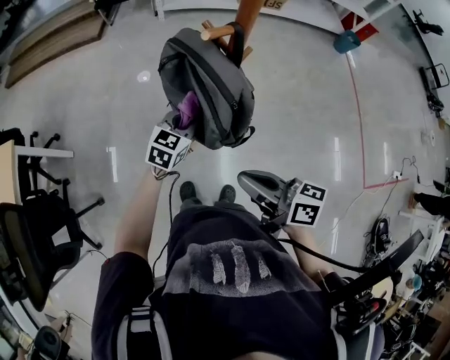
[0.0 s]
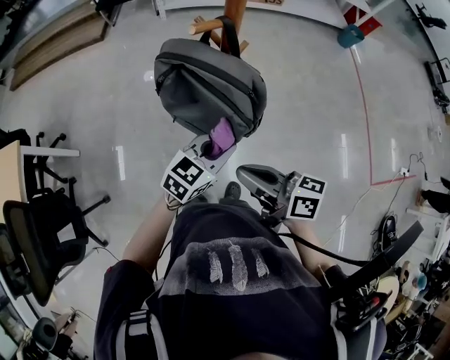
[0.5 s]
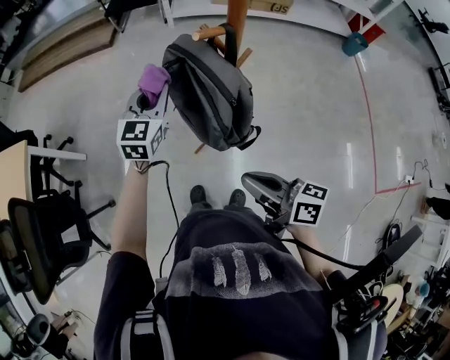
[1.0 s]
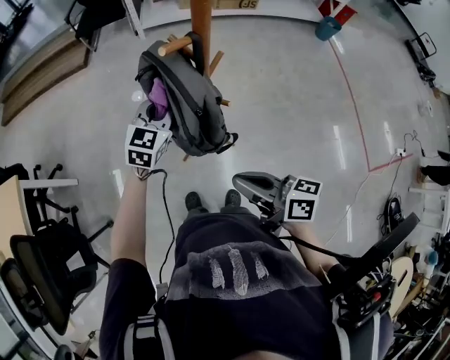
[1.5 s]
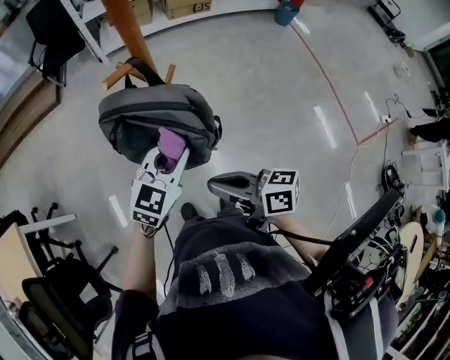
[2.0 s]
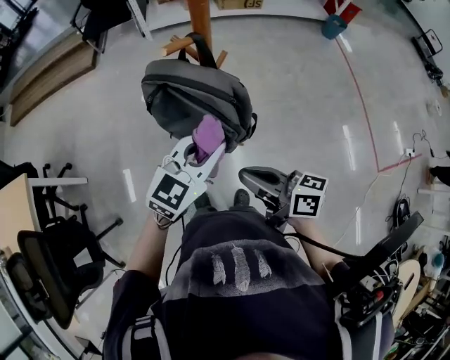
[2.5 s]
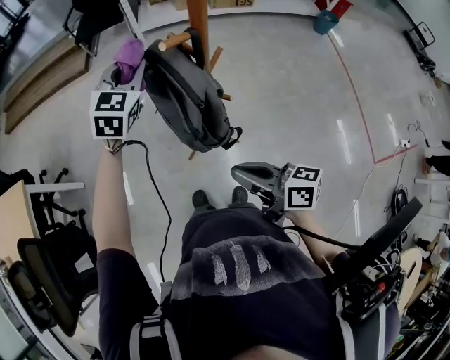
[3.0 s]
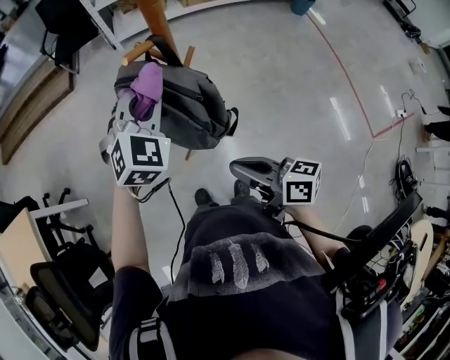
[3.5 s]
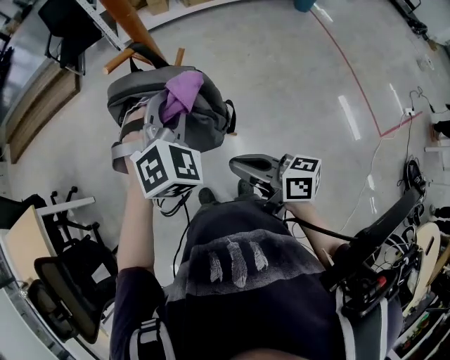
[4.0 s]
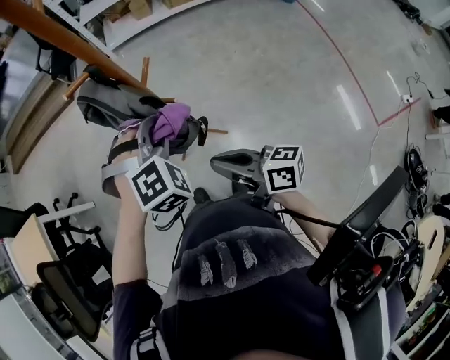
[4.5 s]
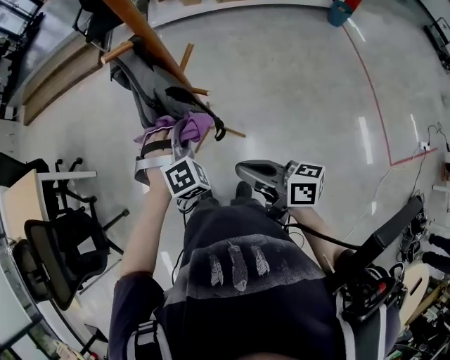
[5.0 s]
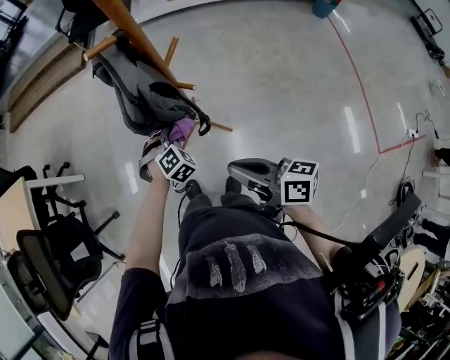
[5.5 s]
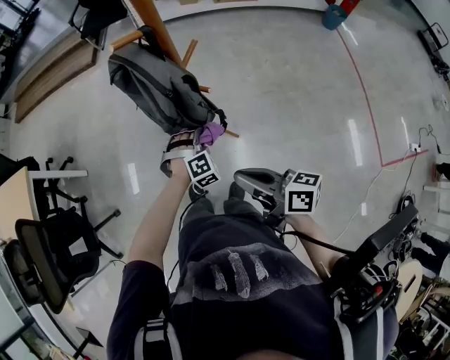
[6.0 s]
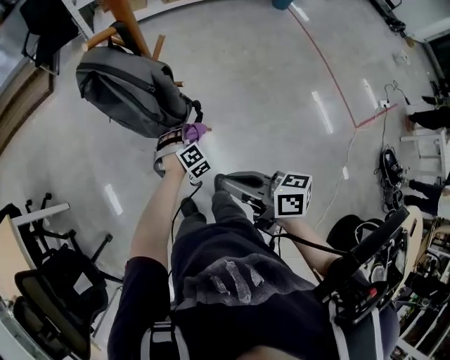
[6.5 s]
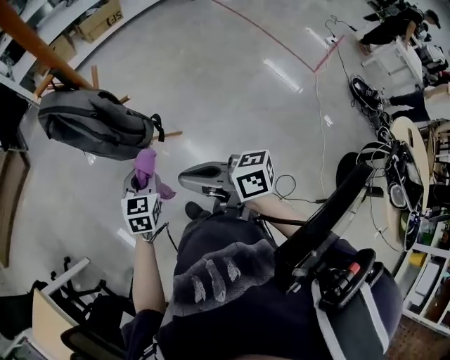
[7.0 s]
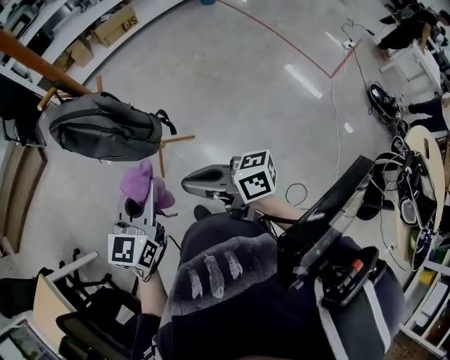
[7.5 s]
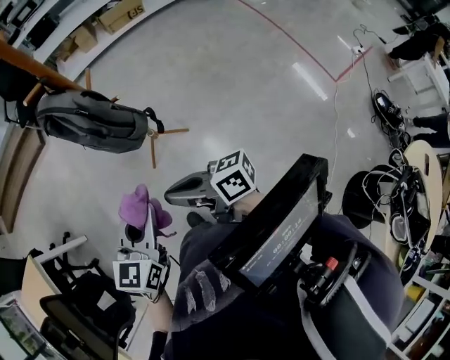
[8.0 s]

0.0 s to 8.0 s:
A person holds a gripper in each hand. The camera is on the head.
0.0 to 2.0 s: The left gripper moves forward and backward over some 20 cm, changing direction 2 times, and changes its angle by some 20 degrees.
2.0 to 4.0 s: The left gripper shifts approximately 10 cm upward, travels forward and back again, about 20 cm each way, and swivels roughly 50 degrees.
4.0 to 6.0 s: The left gripper goes some 30 cm downward, and swivels about 20 degrees; the right gripper moves roughly 5 cm.
6.0 to 8.0 s: The left gripper moves upward, approximately 25 cm, and points its fingers roughly 30 degrees further upward. Meanwhile the right gripper ends up some 15 cm from where it was.

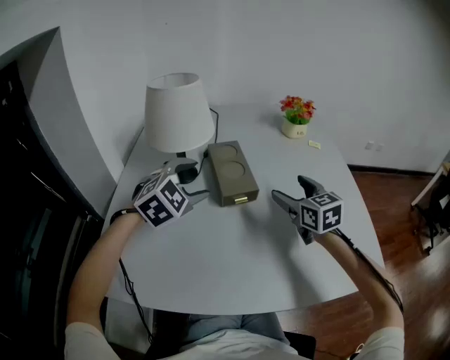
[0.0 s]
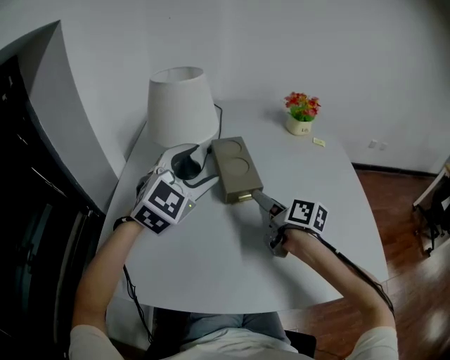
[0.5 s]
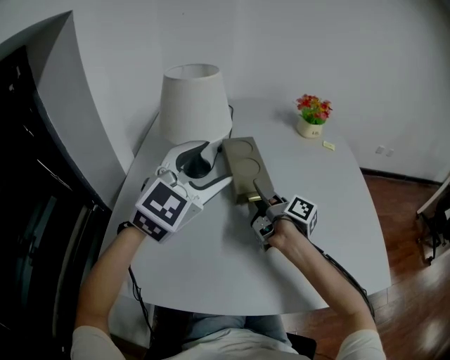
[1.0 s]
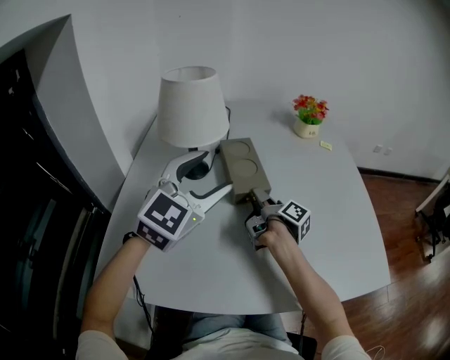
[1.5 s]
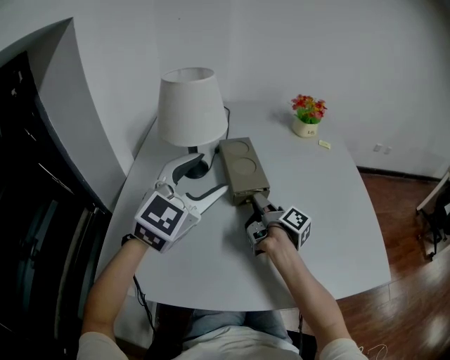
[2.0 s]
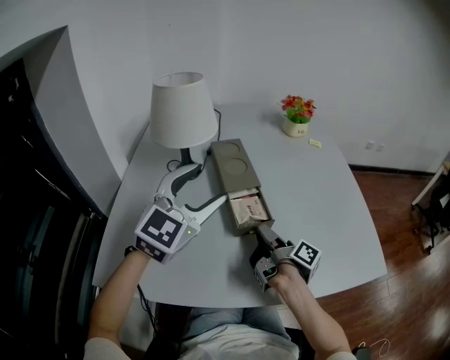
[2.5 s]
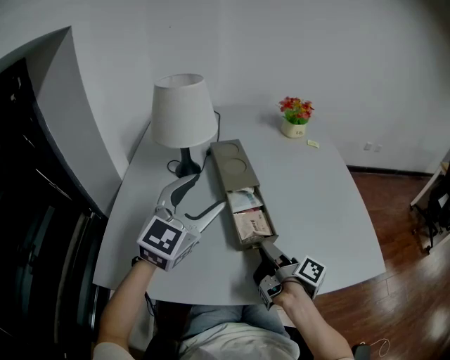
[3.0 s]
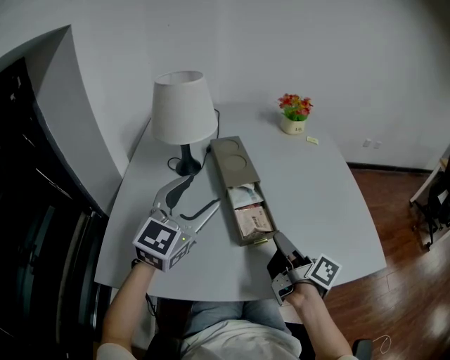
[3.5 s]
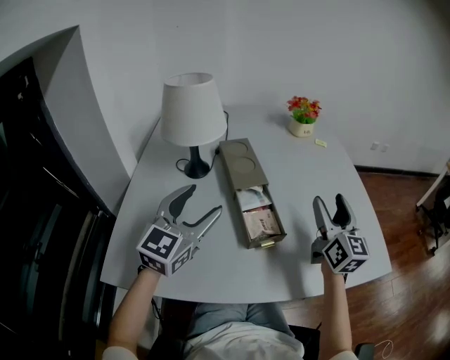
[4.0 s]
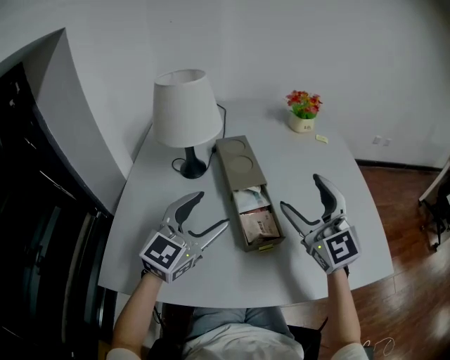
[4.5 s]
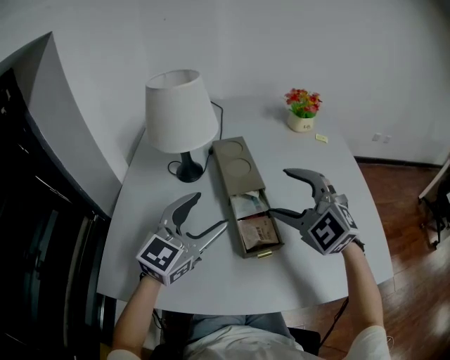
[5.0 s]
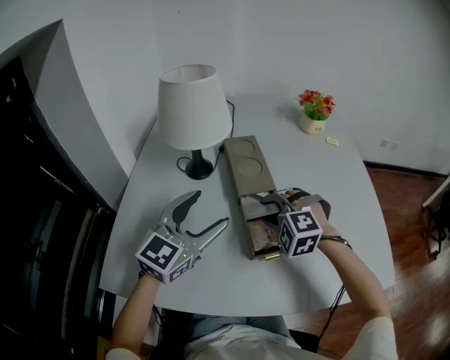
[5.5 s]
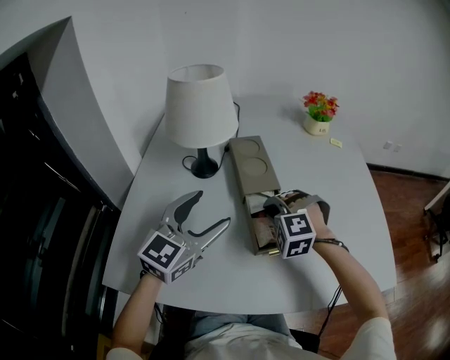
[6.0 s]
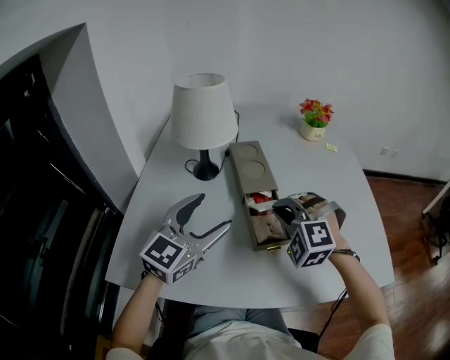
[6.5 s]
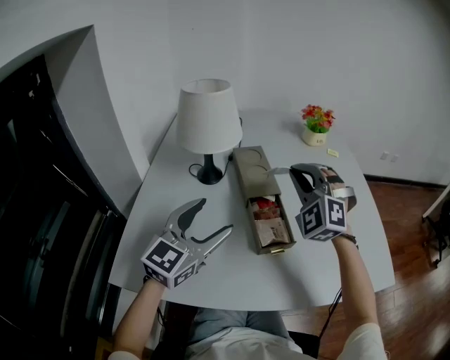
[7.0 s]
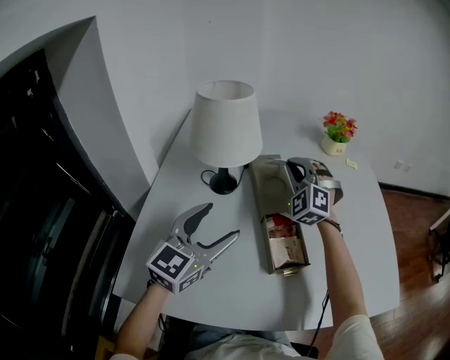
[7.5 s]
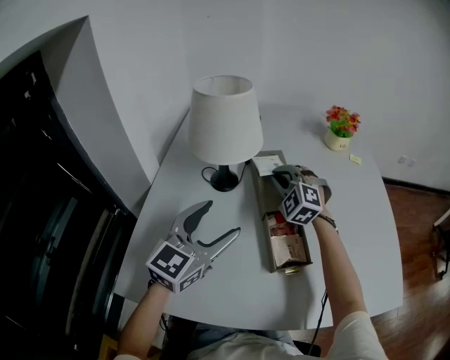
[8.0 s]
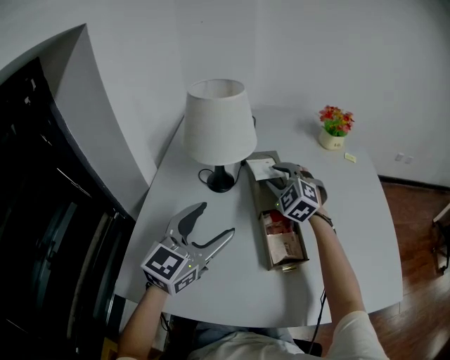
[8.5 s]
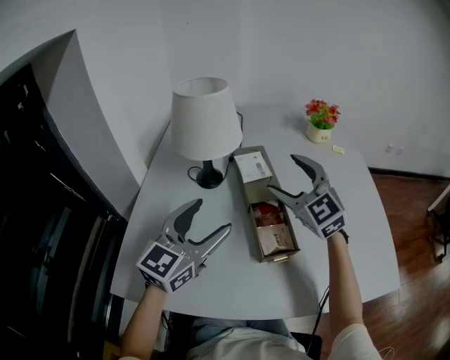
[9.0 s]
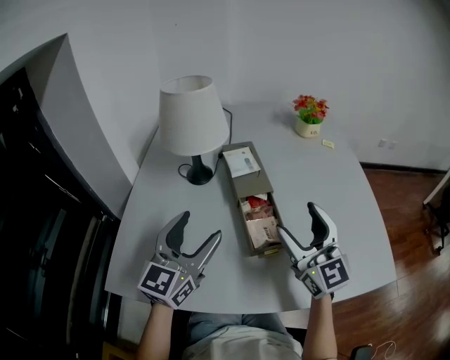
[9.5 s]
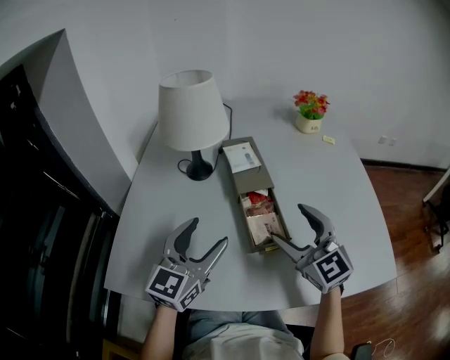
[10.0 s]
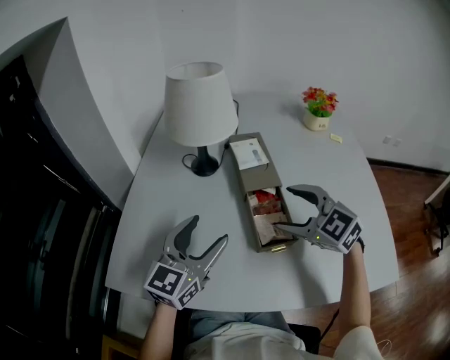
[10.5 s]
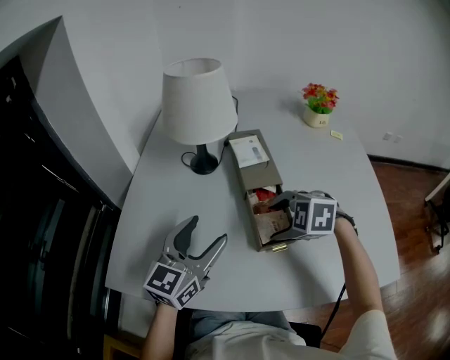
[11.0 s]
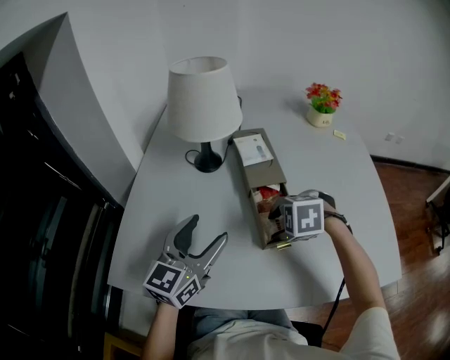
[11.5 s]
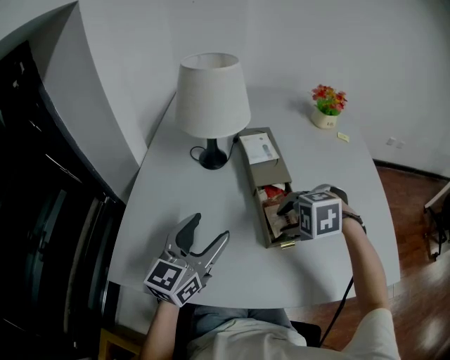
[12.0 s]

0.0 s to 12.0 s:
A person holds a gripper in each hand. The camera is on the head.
0.0 to 2.0 s: The right gripper heads to the left and downward, covering approximately 15 cm, rolls clockwise, seen from behind, by some 90 degrees, and closes up, while the left gripper travels upward and backward by some 10 cm, and rotates roughly 30 degrees.
2.0 to 4.0 s: The left gripper heads downward and backward, covering approximately 5 cm. Meanwhile the right gripper is displaced to the right, upward and backward by approximately 25 cm, twists about 80 degrees counterclockwise, seen from behind, and opens its fingers.
4.0 to 6.0 s: The right gripper shifts some 25 cm to the left and downward, rolls counterclockwise, seen from behind, by roughly 90 degrees, and closes its fingers.
6.0 to 8.0 s: The right gripper is displaced forward, to the left and upward by approximately 15 cm, and rotates approximately 30 degrees.
8.0 to 10.0 s: The left gripper is displaced backward by about 5 cm. The right gripper moves backward, some 25 cm, rotates around the line of its fingers by some 40 degrees, clockwise from behind, and opens.
10.0 to 12.0 s: The right gripper moves downward, approximately 10 cm, angles its fingers downward, by about 70 degrees, and closes its fingers.

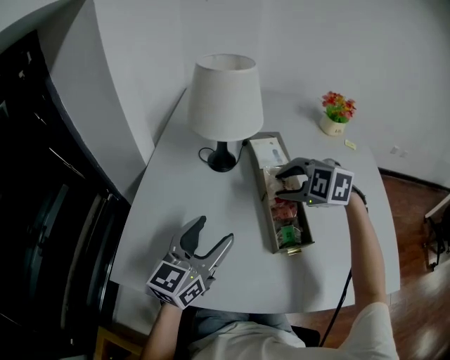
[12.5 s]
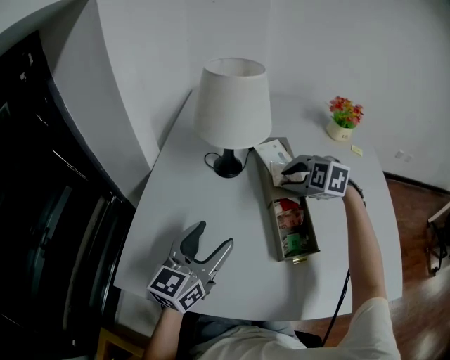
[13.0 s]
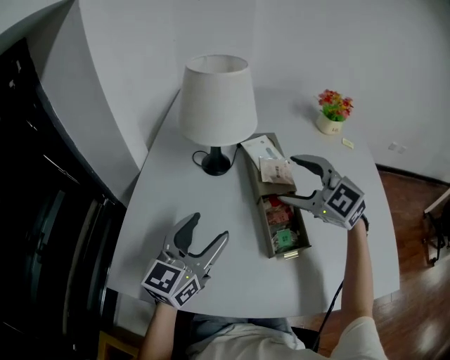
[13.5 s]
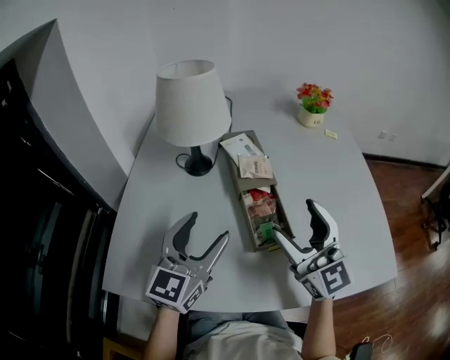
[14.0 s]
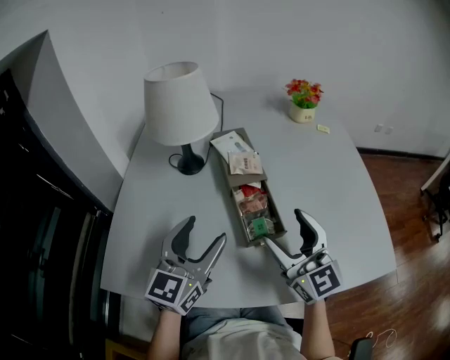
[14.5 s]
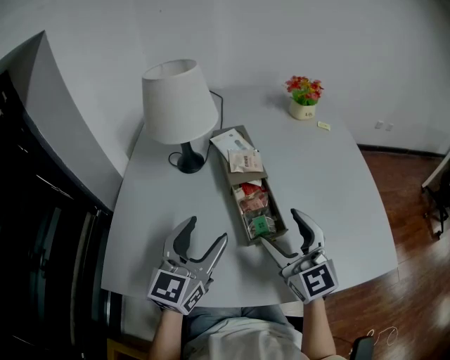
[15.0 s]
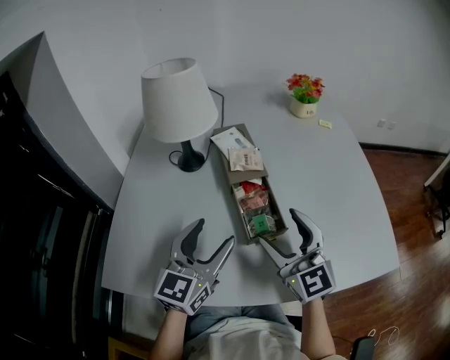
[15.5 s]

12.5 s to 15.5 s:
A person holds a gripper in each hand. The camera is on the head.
12.5 to 14.0 s: The left gripper shifts by some 5 cm. Meanwhile the right gripper travels backward, upward and to the right by about 15 cm, points its fingers about 60 degrees further upward, and opens up.
14.0 to 15.5 s: The right gripper is displaced downward by some 5 cm.

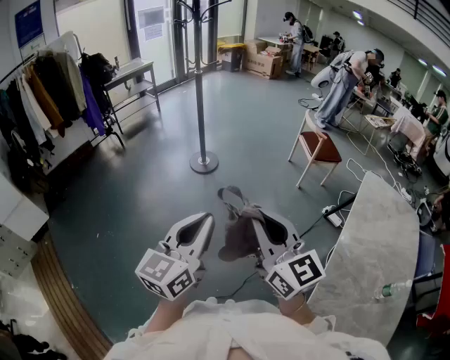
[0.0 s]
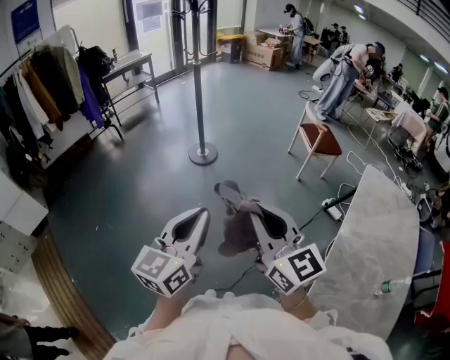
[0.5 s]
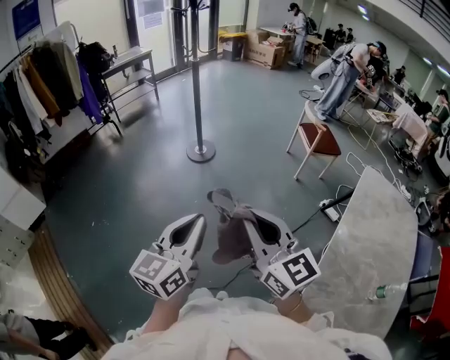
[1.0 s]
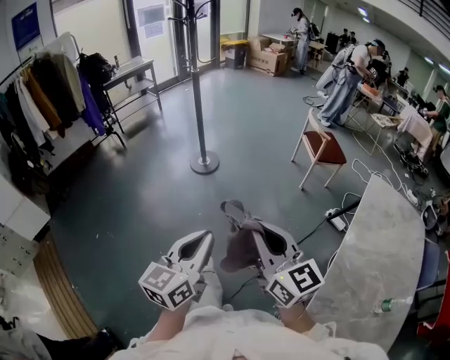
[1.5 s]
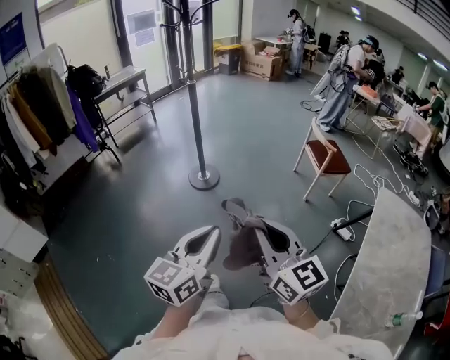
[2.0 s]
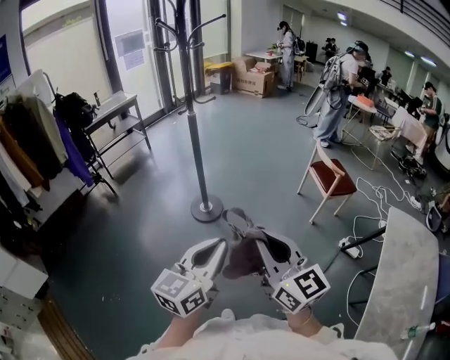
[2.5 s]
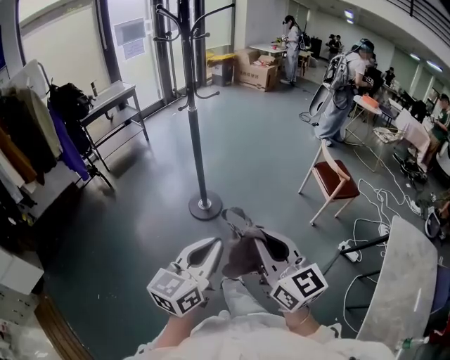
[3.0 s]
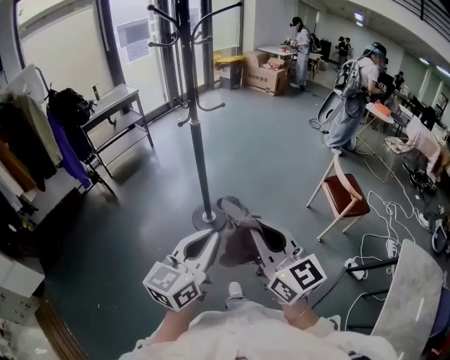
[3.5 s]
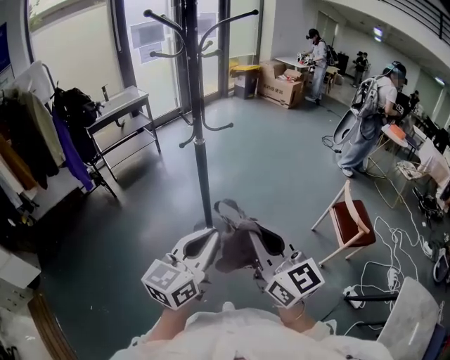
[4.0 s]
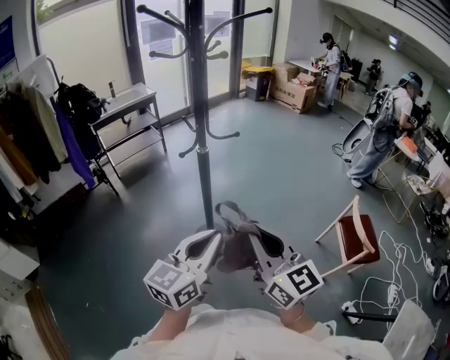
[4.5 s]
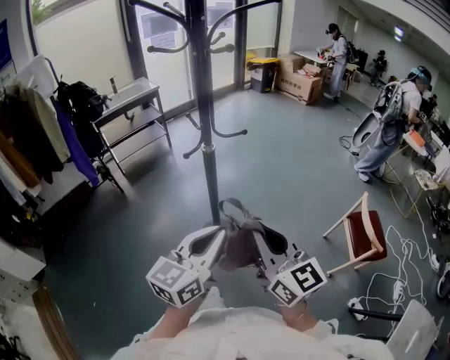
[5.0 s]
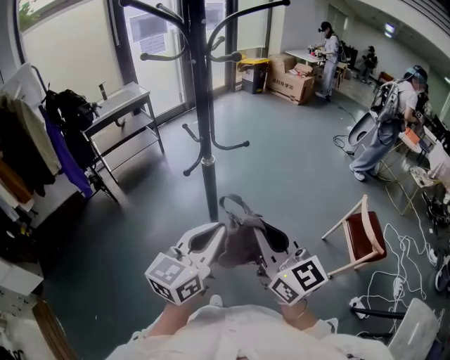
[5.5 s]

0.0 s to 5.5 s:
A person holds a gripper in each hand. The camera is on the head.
0.0 to 2.0 s: Both grippers move forward, roughly 20 cm.
2.0 to 3.5 s: Both grippers travel together forward, some 35 cm.
3.5 to 5.5 s: The two grippers go some 30 cm forward.
